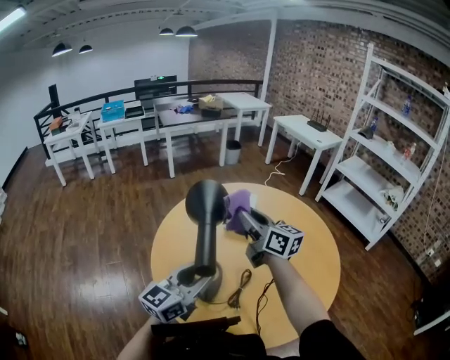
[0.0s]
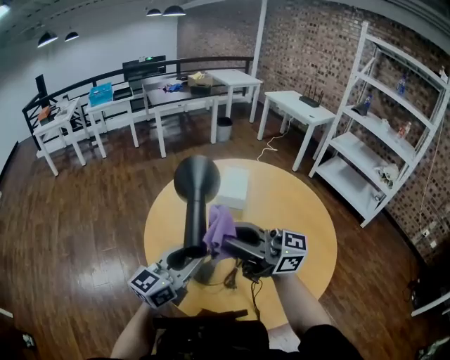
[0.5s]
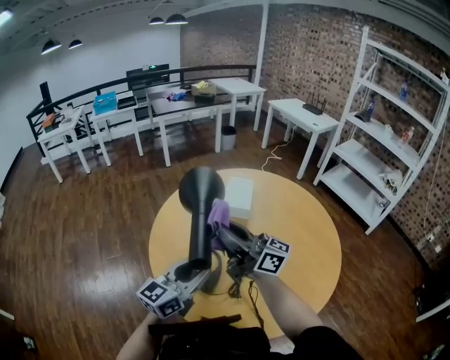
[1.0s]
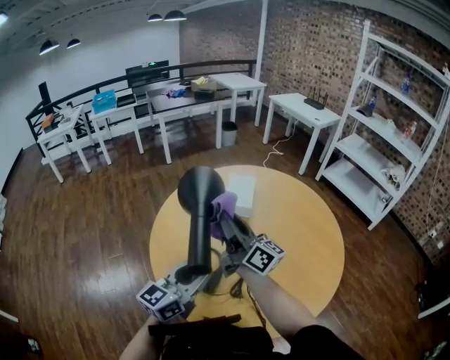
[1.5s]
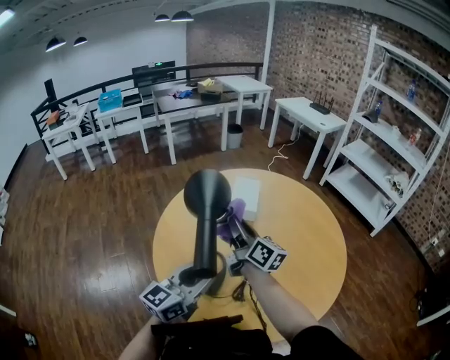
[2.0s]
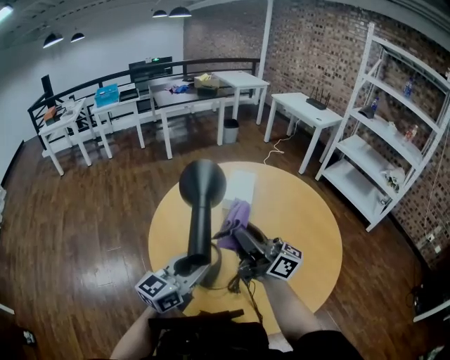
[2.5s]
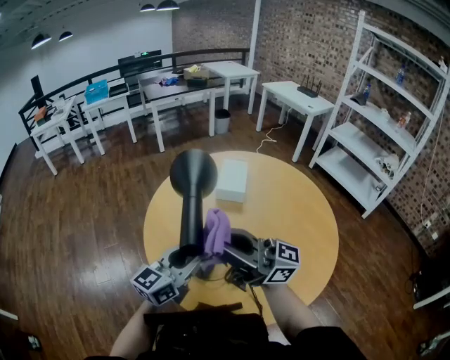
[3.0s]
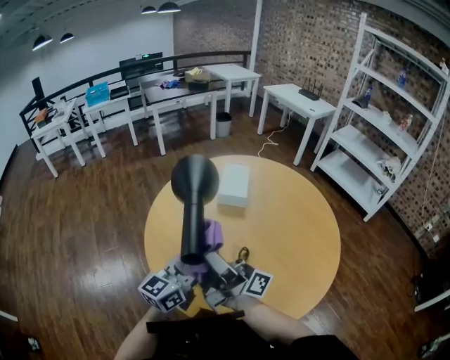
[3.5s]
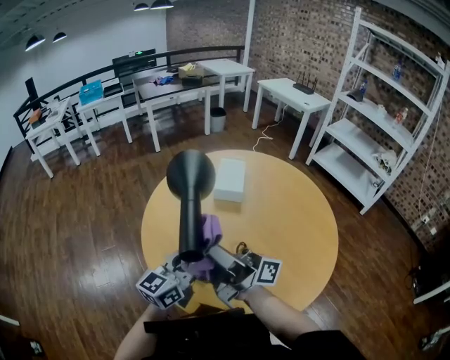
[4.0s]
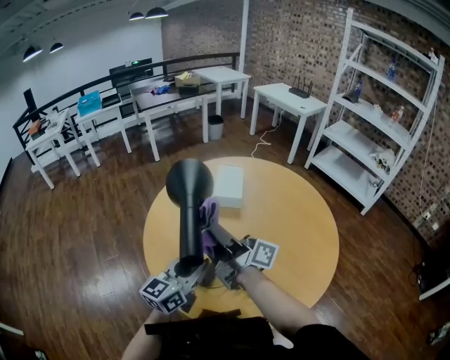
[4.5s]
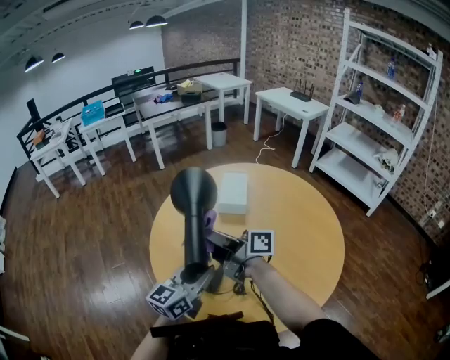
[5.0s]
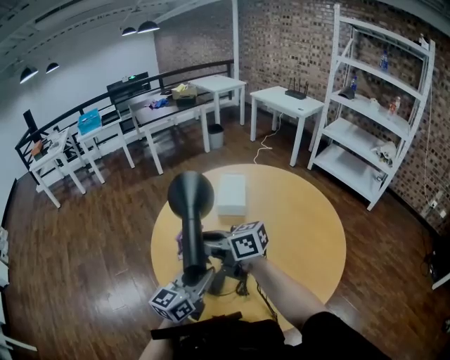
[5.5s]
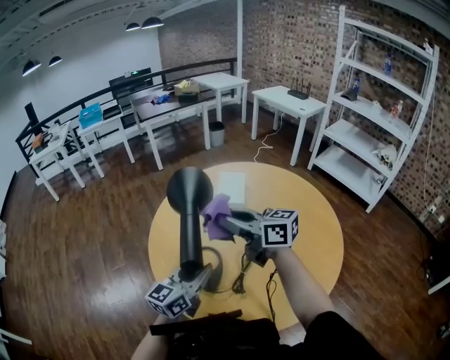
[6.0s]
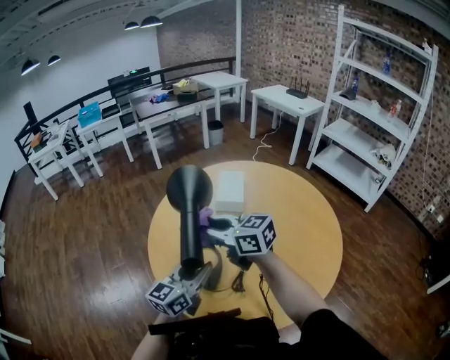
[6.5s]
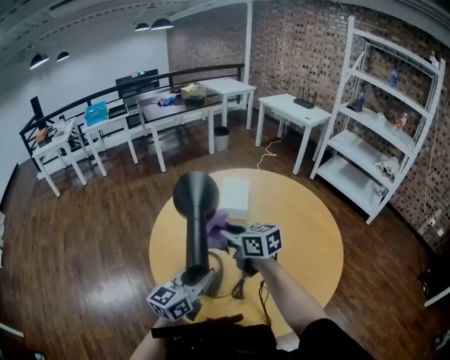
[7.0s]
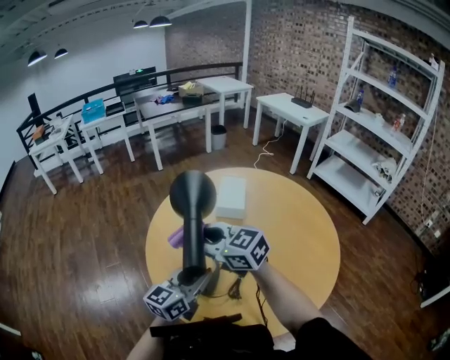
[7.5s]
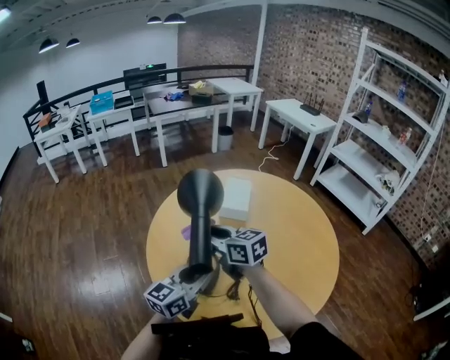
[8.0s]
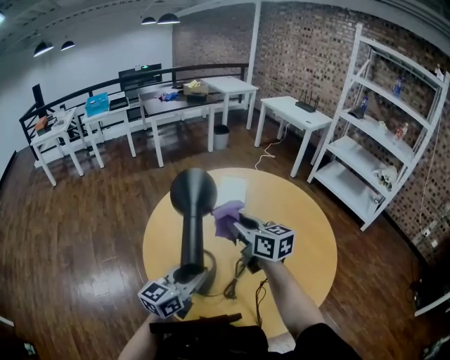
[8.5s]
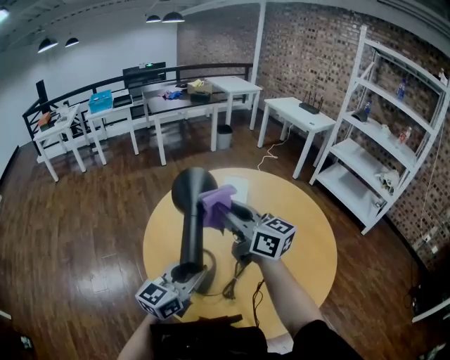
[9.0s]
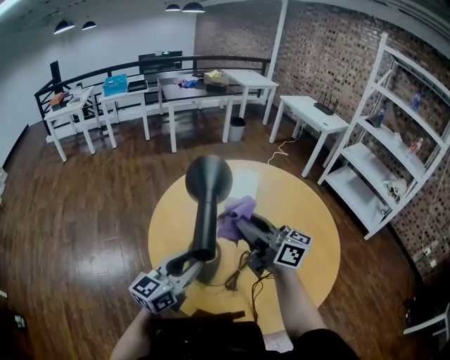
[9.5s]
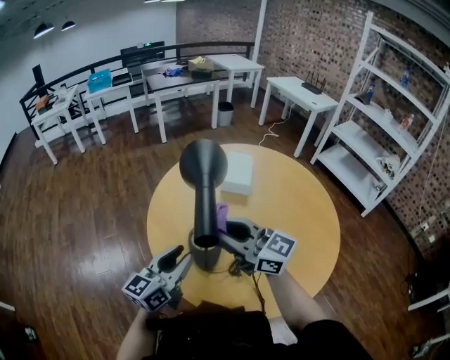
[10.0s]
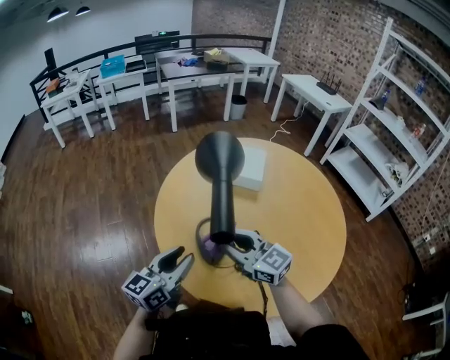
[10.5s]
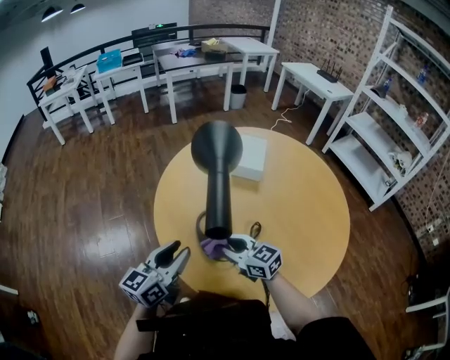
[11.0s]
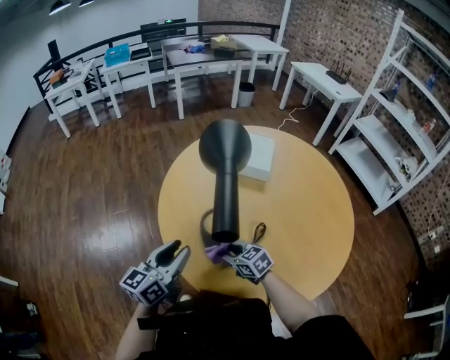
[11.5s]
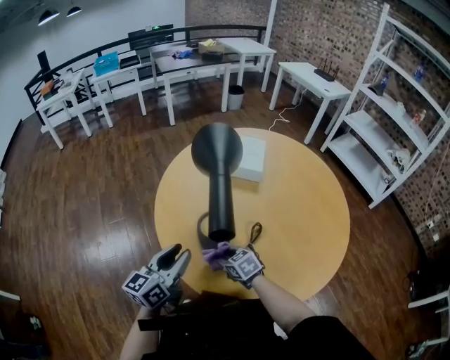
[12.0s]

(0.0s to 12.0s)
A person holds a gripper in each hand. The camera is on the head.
0.0s - 2.0s: The right gripper is displaced downward by roughly 5 cm, travels backward and back again, some 15 cm each way, and swivels some 20 degrees.
2.0s - 4.0s: The right gripper travels backward, upward and to the left by about 20 cm, and tips its fingers upward by roughly 30 degrees.
4.0s - 6.0s: The right gripper shifts roughly 10 cm forward and to the right, and tilts its fingers approximately 40 degrees downward.
6.0s - 8.0s: The right gripper swings left and right, about 10 cm each way, with 2 reversals.
8.0s - 10.0s: The left gripper goes some 5 cm to the left. The right gripper moves backward and upward, about 10 cm, and swivels about 30 degrees.
10.0s - 12.0s: The left gripper changes place by roughly 5 cm. Meanwhile the right gripper shifts about 35 cm downward, and tilts its fingers approximately 50 degrees downward.

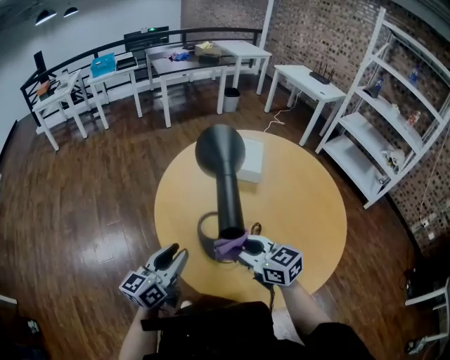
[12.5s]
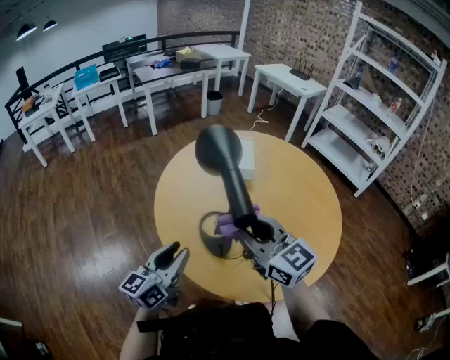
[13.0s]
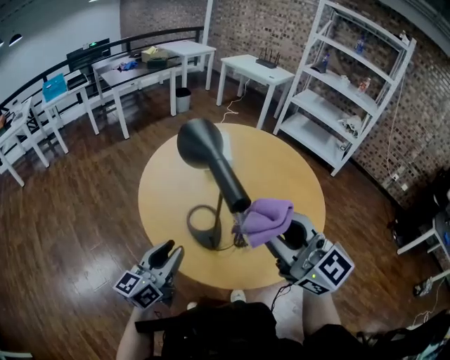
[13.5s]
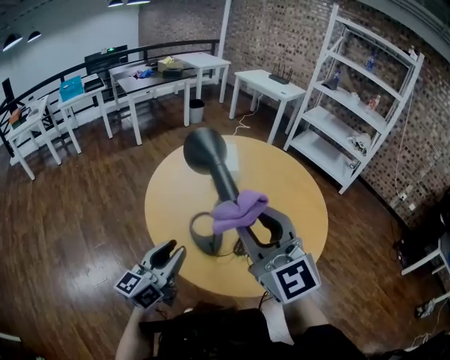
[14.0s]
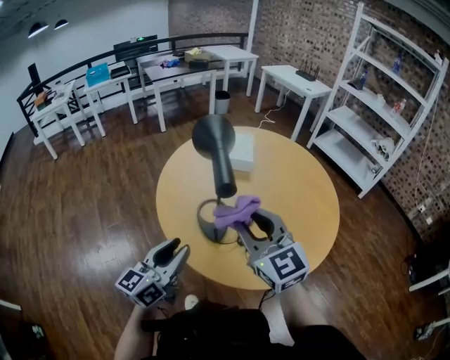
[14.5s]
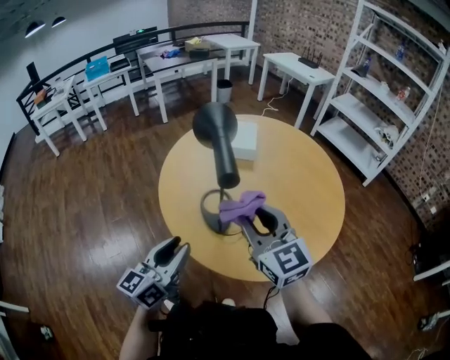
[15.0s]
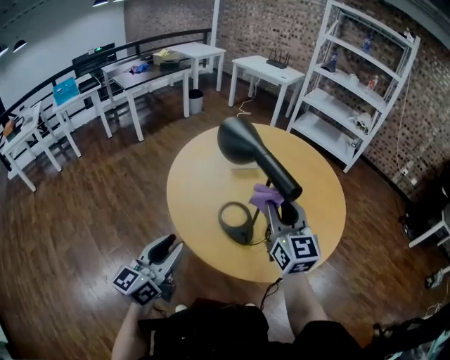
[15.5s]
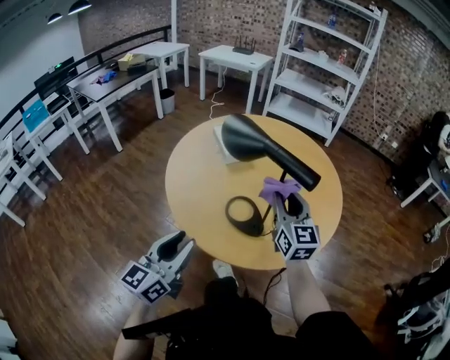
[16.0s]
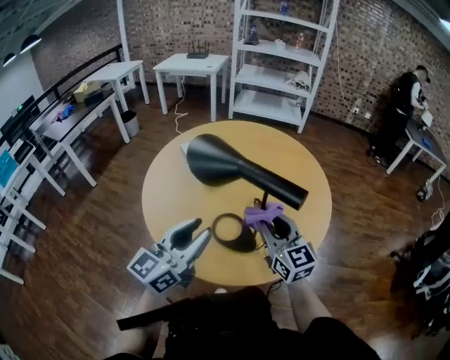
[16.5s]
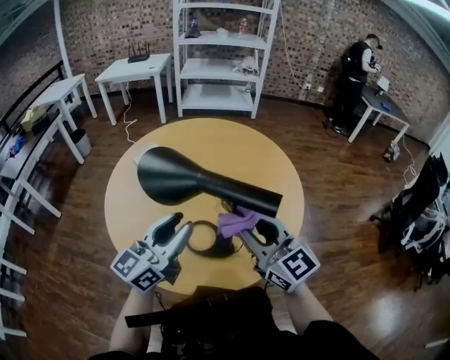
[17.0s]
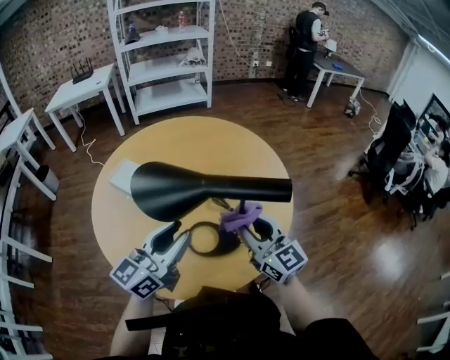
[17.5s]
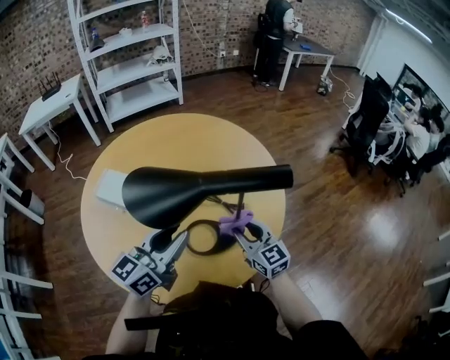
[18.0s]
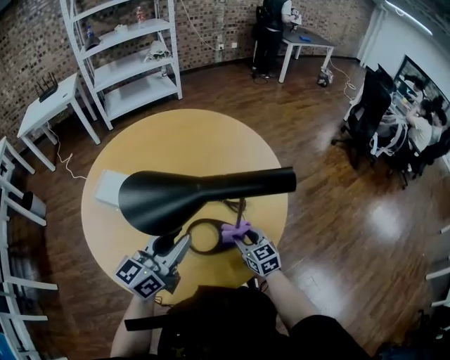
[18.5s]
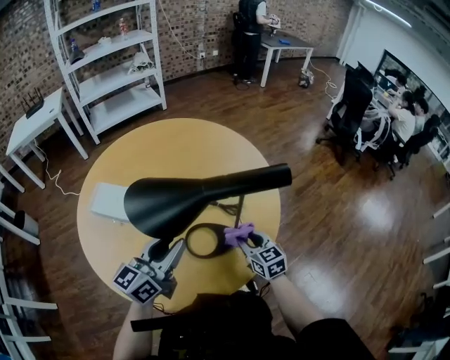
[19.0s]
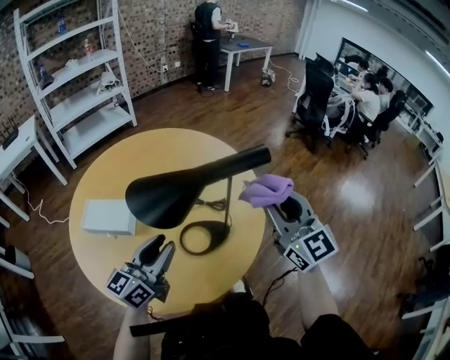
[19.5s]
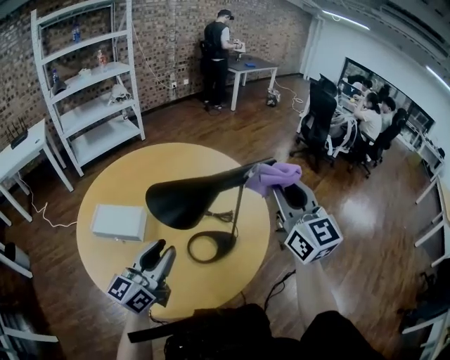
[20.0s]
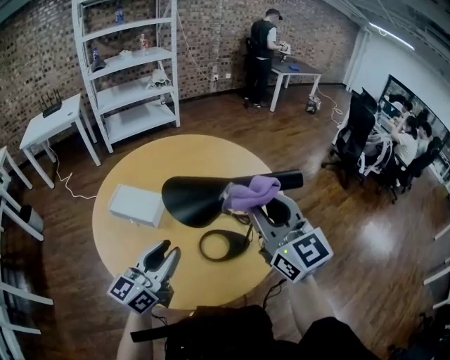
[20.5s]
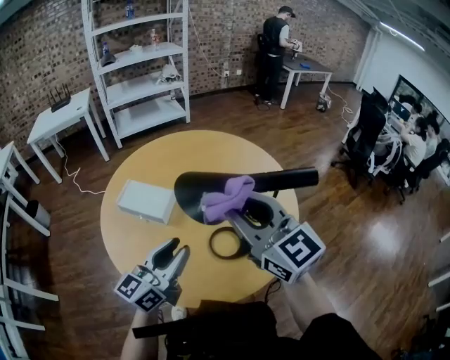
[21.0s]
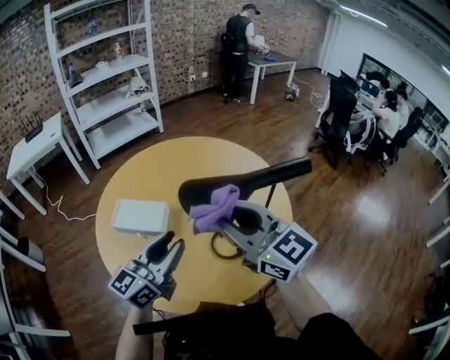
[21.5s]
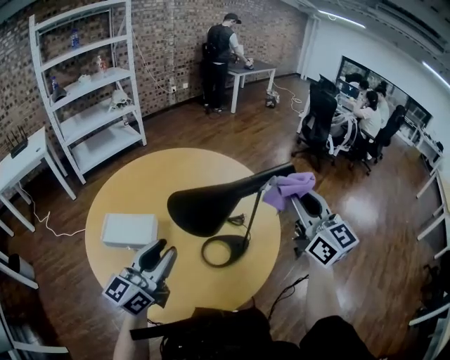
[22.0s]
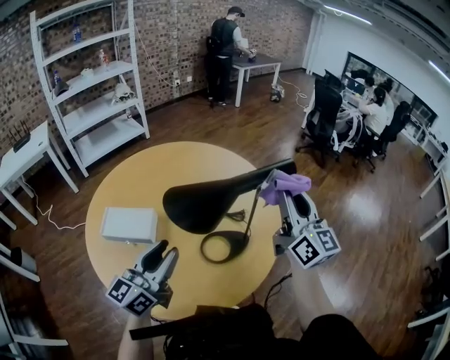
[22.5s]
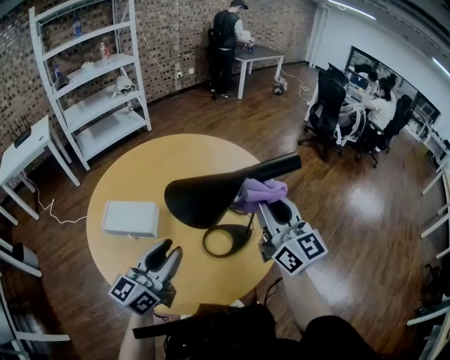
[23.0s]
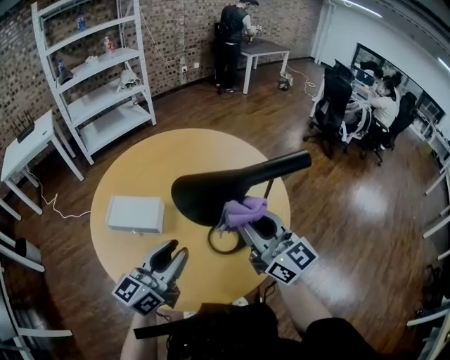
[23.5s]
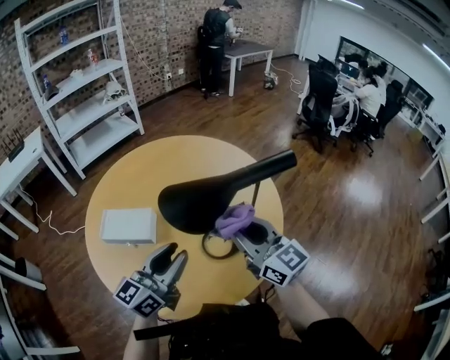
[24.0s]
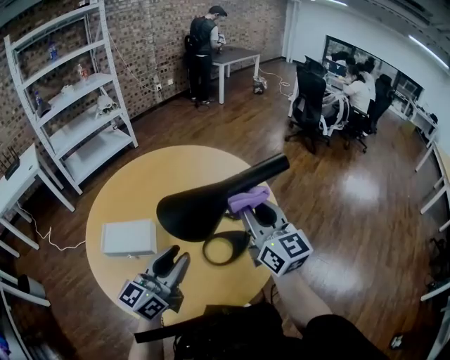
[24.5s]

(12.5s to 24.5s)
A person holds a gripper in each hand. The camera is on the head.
12.5s - 14.5s: The left gripper heads upward and backward, covering about 10 cm, while the right gripper goes some 15 cm upward, and rotates some 40 degrees.
14.5s - 16.5s: The left gripper ends up approximately 20 cm from where it was, and turns by roughly 50 degrees. Meanwhile the right gripper travels downward by some 10 cm, and swivels about 50 degrees.
16.5s - 18.5s: The left gripper ends up some 15 cm from where it was, and rotates approximately 40 degrees. The right gripper is displaced downward by about 25 cm, and rotates about 40 degrees.
18.5s - 20.5s: The left gripper moves to the left and backward, approximately 10 cm; the right gripper heads upward, covering some 40 cm, and tilts its fingers roughly 30 degrees upward.
20.5s - 22.5s: The right gripper ends up about 10 cm from where it was, and turns by approximately 30 degrees.
22.5s - 24.5s: The right gripper heads to the left, covering roughly 10 cm.

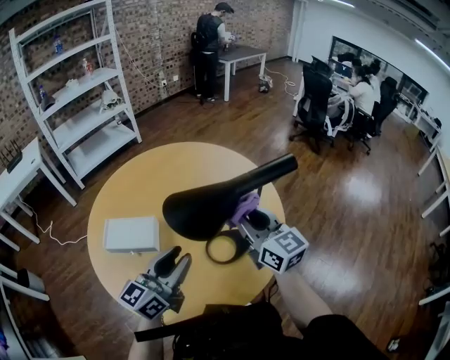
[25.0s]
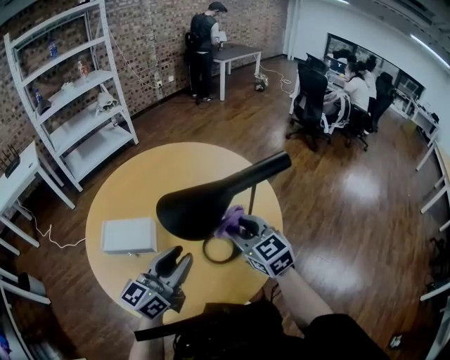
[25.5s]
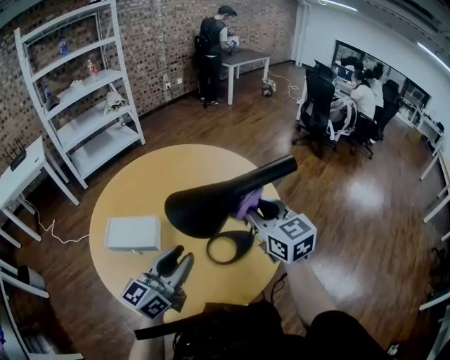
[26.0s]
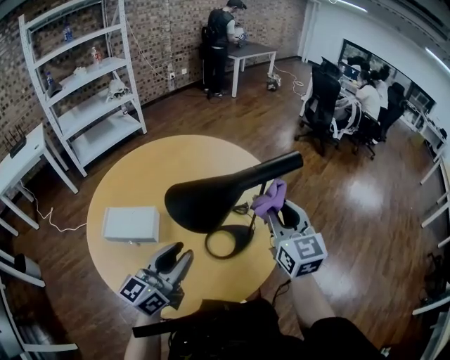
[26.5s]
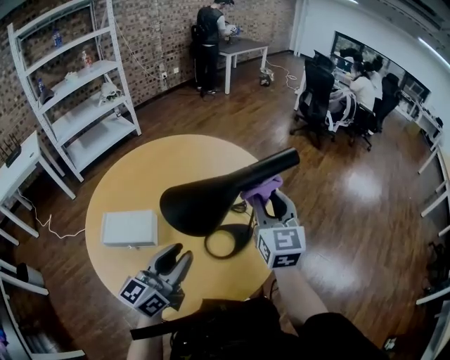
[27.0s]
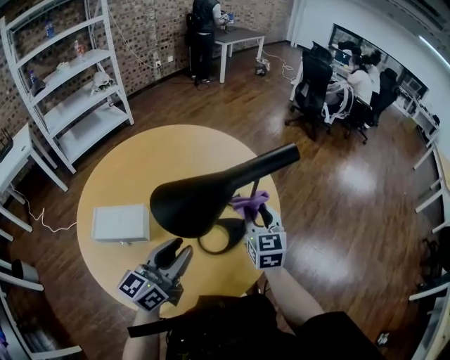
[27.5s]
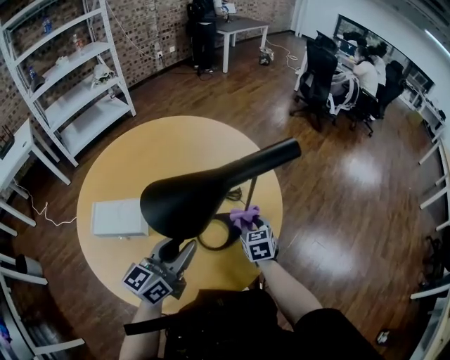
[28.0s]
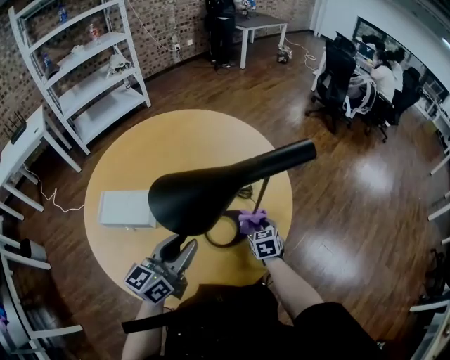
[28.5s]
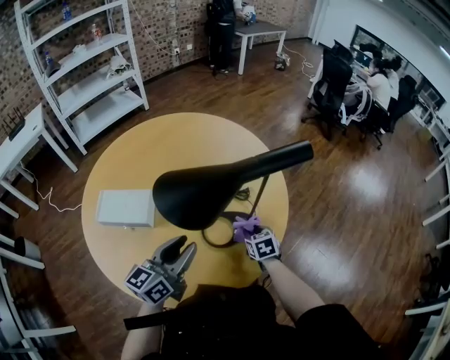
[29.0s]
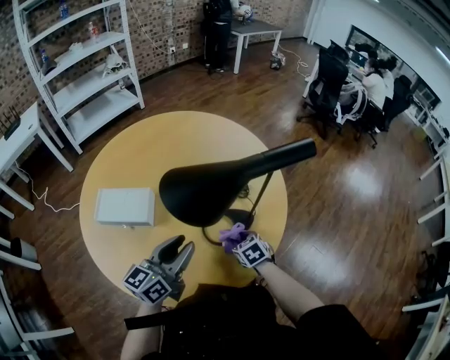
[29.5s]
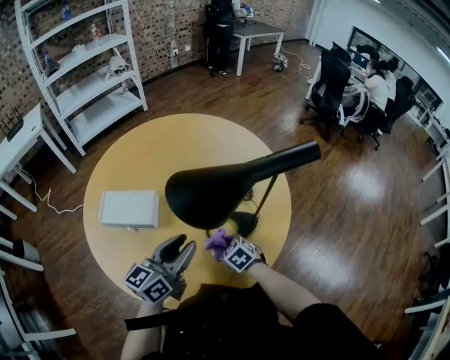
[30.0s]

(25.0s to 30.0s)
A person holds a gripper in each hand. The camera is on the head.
25.0s - 27.5s: The right gripper swings up and down, roughly 15 cm each way, with 2 reversals, and changes its angle by roughly 30 degrees.
27.5s - 30.0s: The right gripper shifts some 25 cm downward, to the left and backward, and tips its fingers downward by some 40 degrees.
